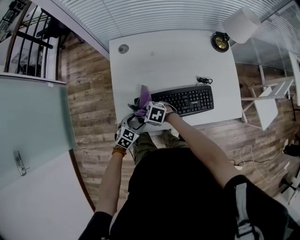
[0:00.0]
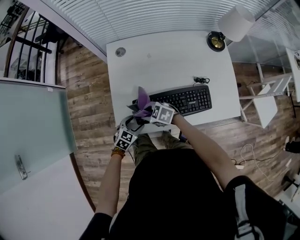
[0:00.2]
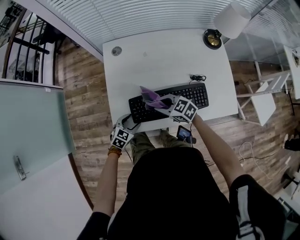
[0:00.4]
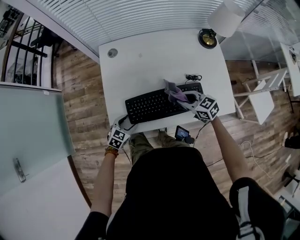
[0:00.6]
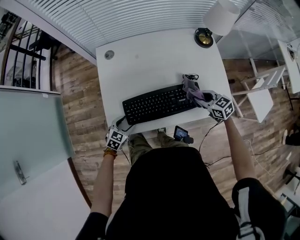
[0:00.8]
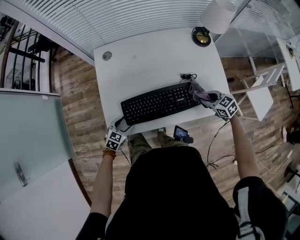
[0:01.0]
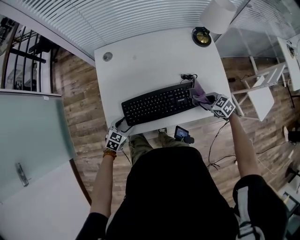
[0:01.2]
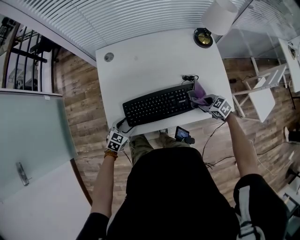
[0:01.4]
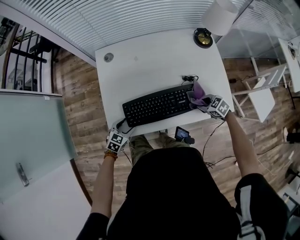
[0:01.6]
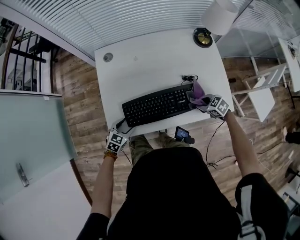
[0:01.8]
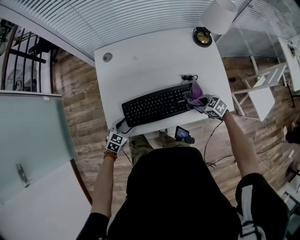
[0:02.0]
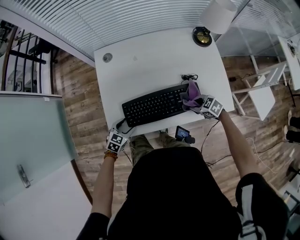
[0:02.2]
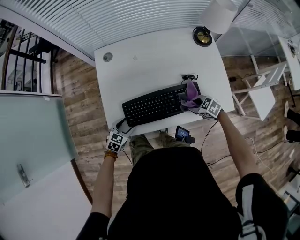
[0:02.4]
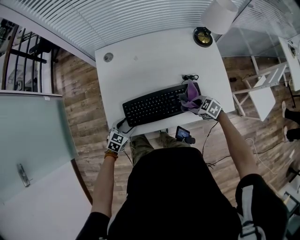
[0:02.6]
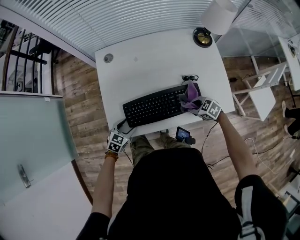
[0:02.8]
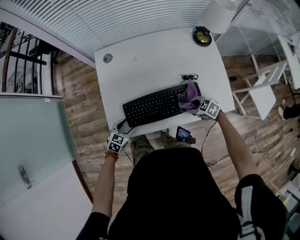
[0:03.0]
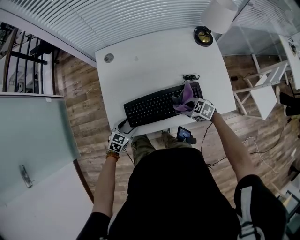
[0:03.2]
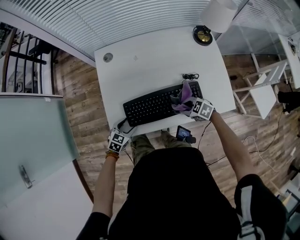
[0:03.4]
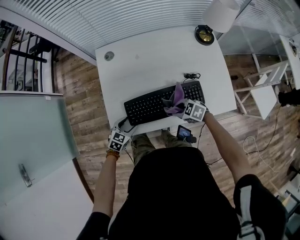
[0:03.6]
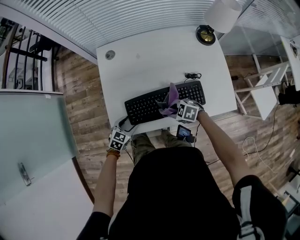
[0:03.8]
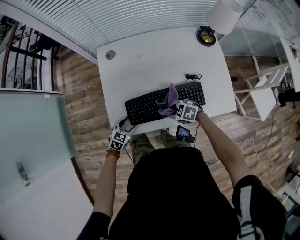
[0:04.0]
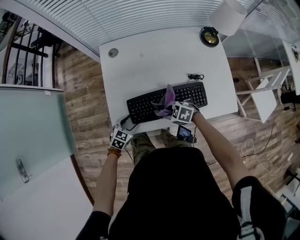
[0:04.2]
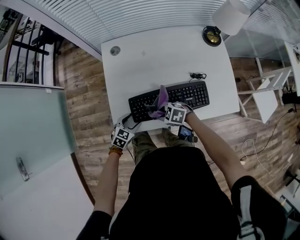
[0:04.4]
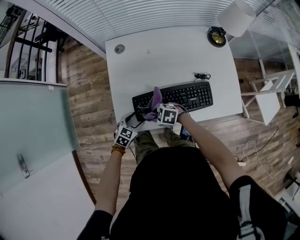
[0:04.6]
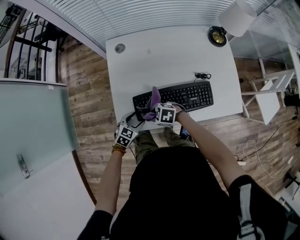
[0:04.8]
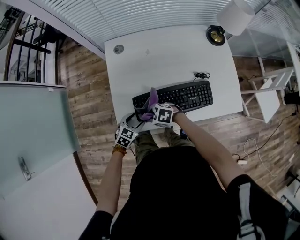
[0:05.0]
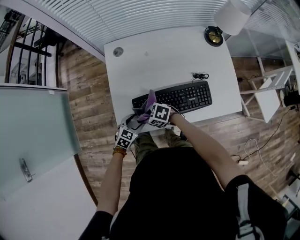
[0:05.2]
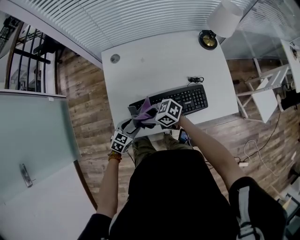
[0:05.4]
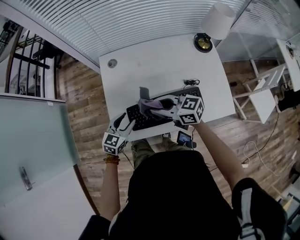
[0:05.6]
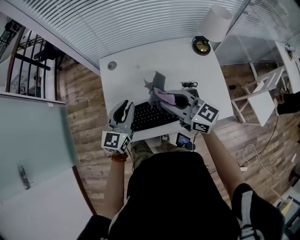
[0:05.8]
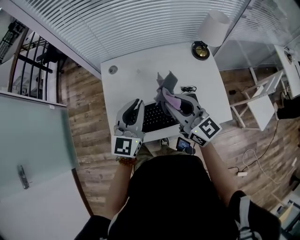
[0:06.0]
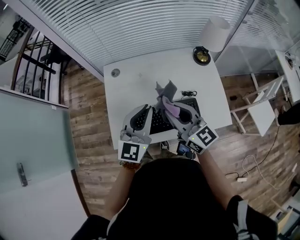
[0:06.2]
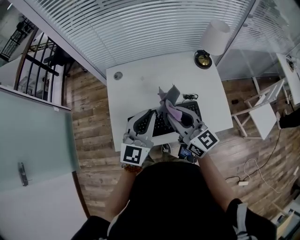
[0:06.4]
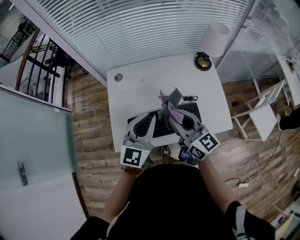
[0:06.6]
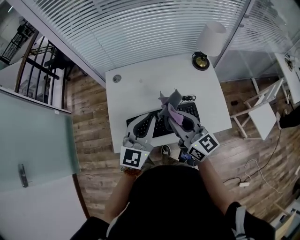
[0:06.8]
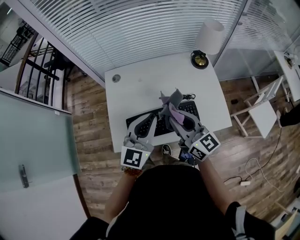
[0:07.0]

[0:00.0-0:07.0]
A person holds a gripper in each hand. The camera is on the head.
0:00.0 to 0:01.4: The right gripper moves some 40 cm, and swivels approximately 30 degrees.
0:01.4 to 0:02.8: The right gripper shifts about 5 cm to the left.
0:02.8 to 0:04.2: The right gripper shifts by approximately 15 cm.
0:04.2 to 0:05.6: The left gripper travels upward by approximately 15 cm; the right gripper shifts roughly 20 cm upward, and tips its fingers upward by roughly 40 degrees.
0:05.6 to 0:07.0: The left gripper goes approximately 25 cm upward and to the right, turns by roughly 30 degrees, and closes its fingers, while the right gripper heads to the right and upward, covering roughly 15 cm, and turns by approximately 40 degrees.

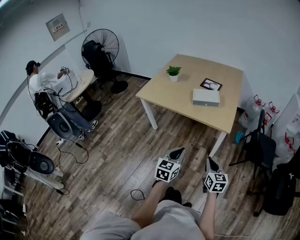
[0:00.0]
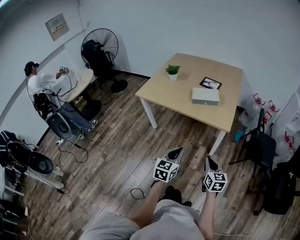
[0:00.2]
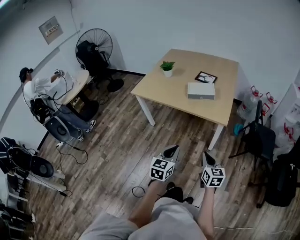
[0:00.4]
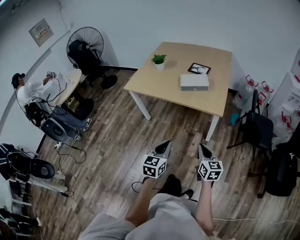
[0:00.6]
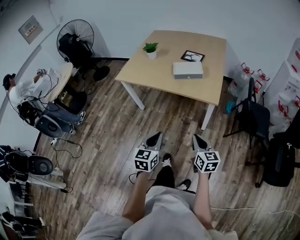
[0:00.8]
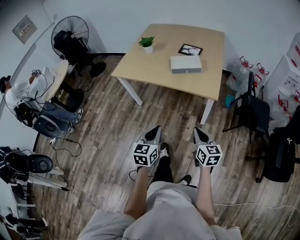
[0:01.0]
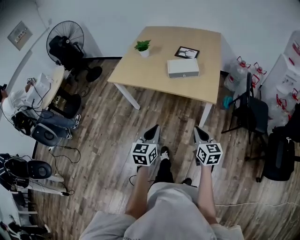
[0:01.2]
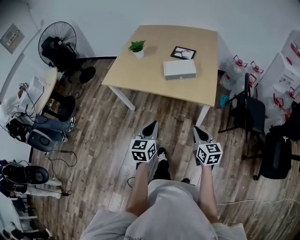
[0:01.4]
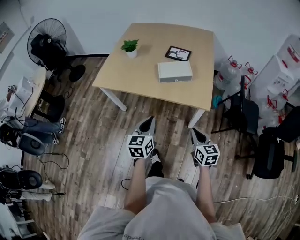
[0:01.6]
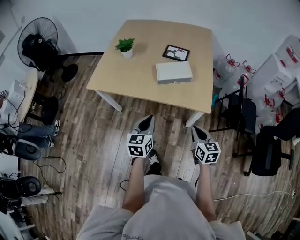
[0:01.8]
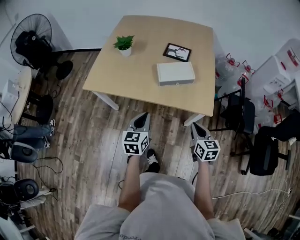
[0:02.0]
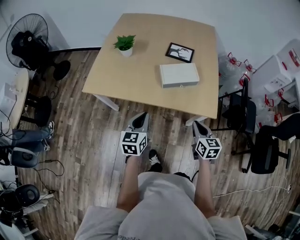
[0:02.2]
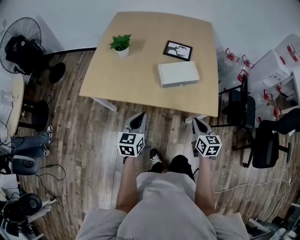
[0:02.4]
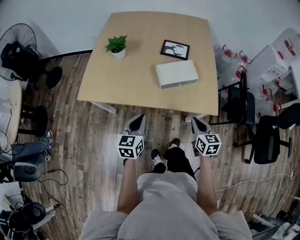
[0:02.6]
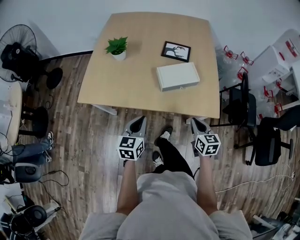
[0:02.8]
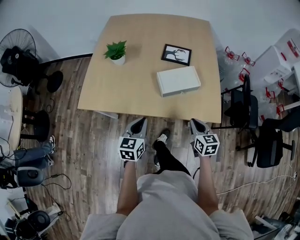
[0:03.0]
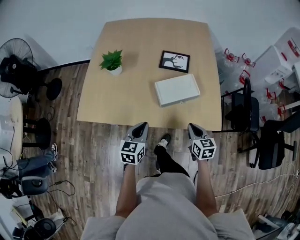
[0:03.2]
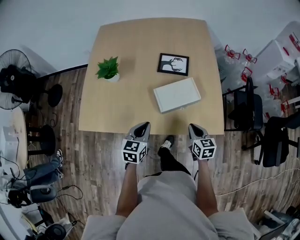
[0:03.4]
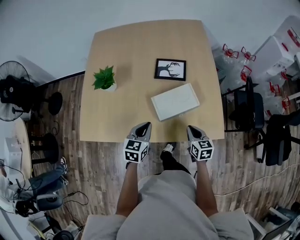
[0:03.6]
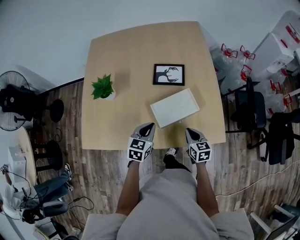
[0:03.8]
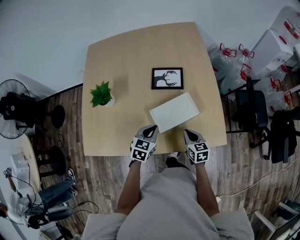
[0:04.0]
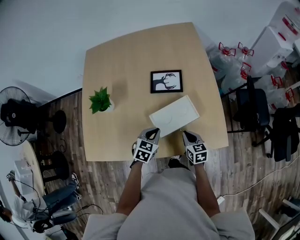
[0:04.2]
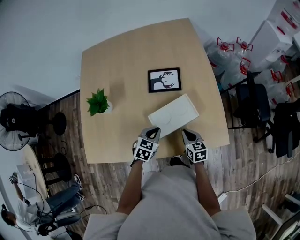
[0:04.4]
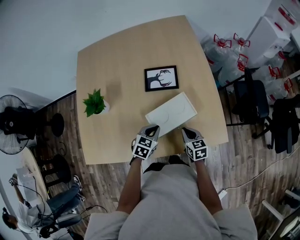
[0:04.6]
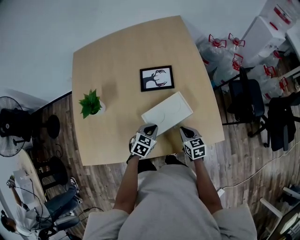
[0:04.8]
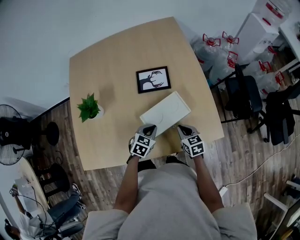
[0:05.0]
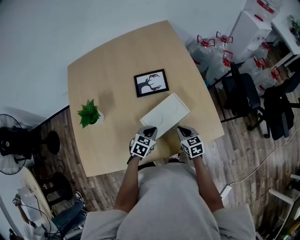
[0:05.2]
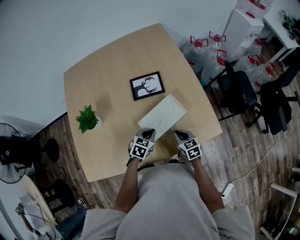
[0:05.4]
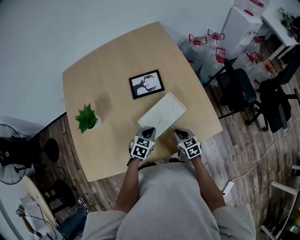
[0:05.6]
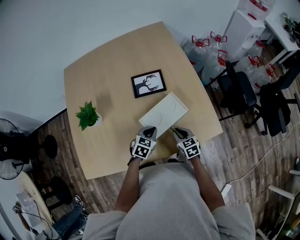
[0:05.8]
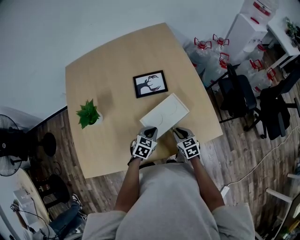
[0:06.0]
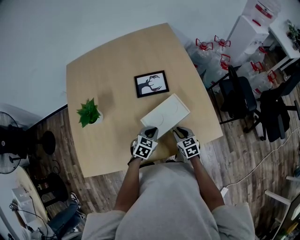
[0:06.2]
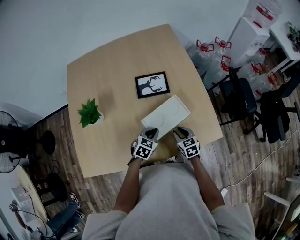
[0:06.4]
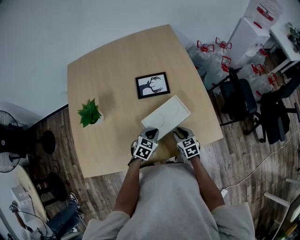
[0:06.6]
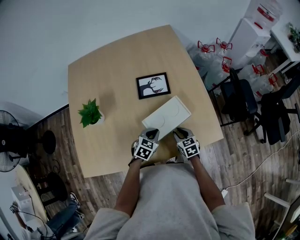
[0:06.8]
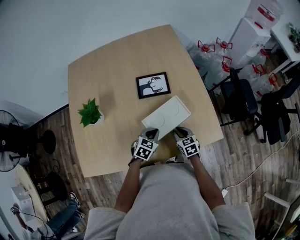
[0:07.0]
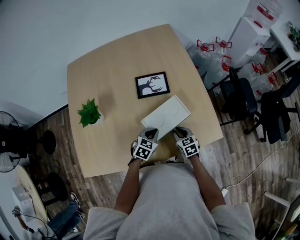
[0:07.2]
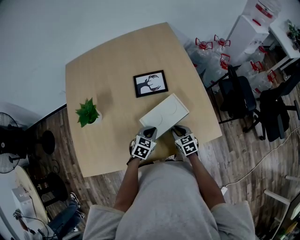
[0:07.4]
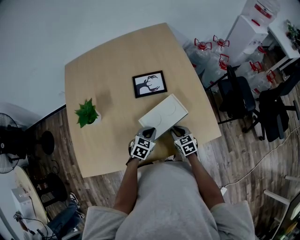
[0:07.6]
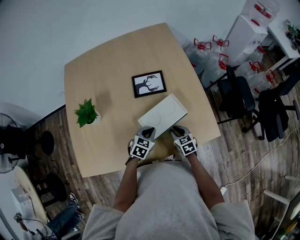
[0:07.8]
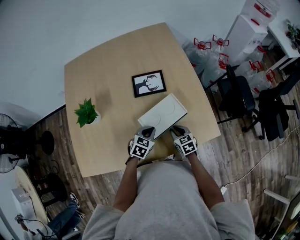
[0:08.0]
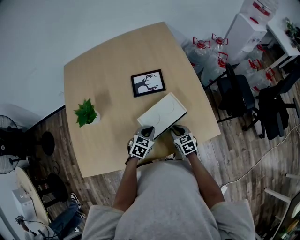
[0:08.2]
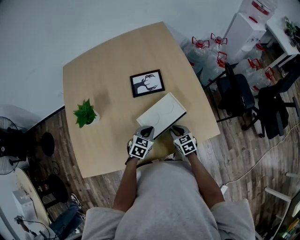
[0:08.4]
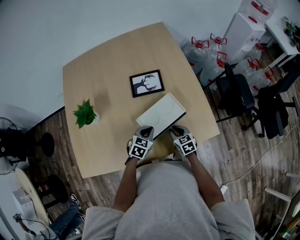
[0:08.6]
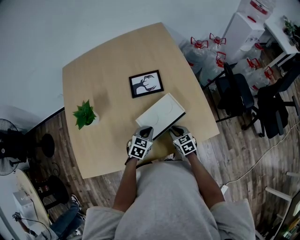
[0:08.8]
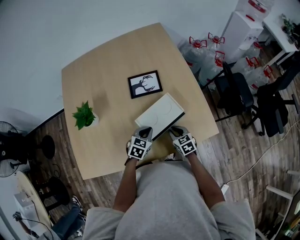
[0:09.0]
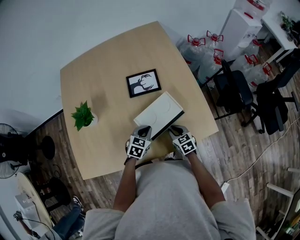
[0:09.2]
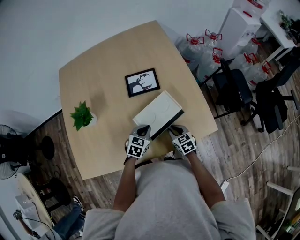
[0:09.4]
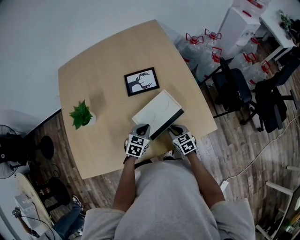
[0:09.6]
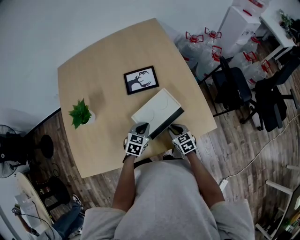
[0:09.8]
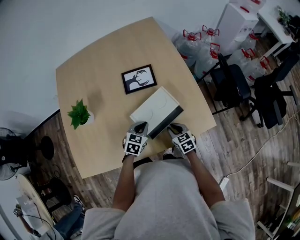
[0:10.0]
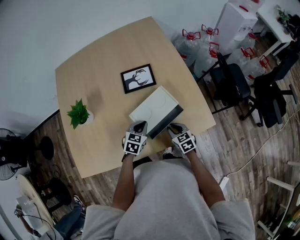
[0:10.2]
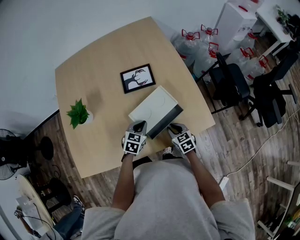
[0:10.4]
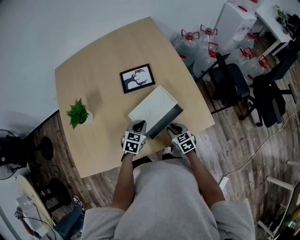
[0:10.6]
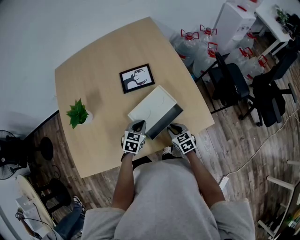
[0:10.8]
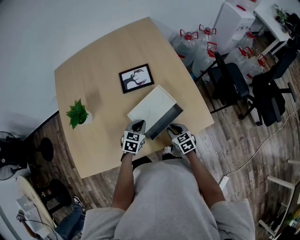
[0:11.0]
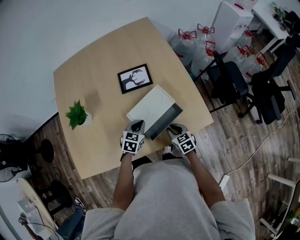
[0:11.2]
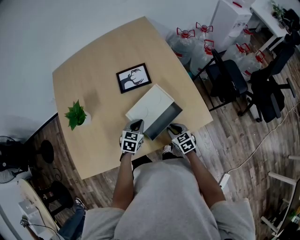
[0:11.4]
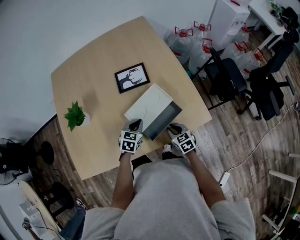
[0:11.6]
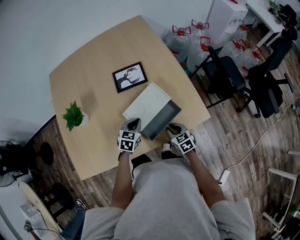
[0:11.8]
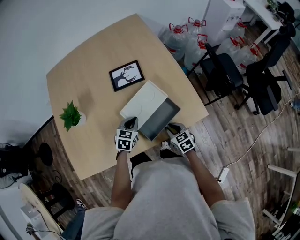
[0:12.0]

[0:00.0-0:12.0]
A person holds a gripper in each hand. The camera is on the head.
0:00.0 to 0:01.6: Both grippers move forward, roughly 15 cm.
0:01.6 to 0:03.0: Both grippers travel together forward and to the left, approximately 25 cm.
0:03.0 to 0:04.4: Both grippers move forward and downward, approximately 20 cm. The left gripper swivels some 40 degrees.
0:04.4 to 0:07.6: There are only small adjustments of the grippers.
0:07.6 to 0:09.0: Both grippers stay put.
0:09.0 to 0:10.4: The grippers stay close to where they were, moving slightly.
0:10.4 to 0:12.0: There are only small adjustments of the grippers.

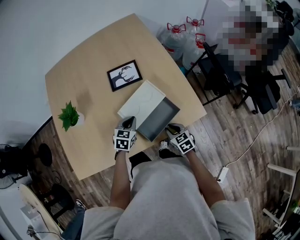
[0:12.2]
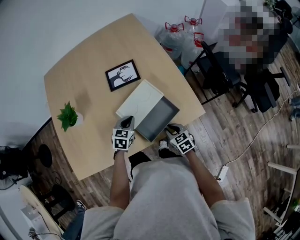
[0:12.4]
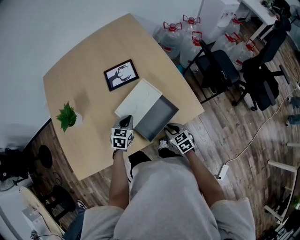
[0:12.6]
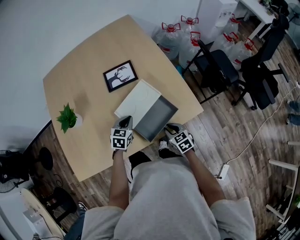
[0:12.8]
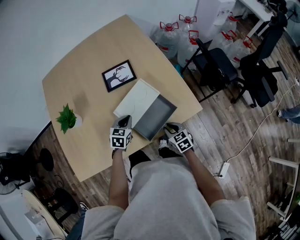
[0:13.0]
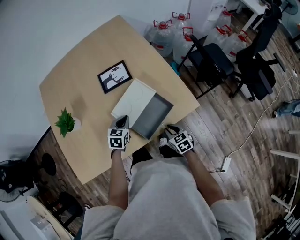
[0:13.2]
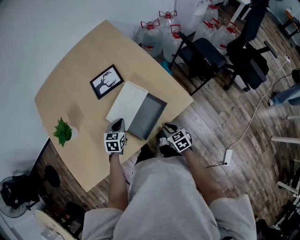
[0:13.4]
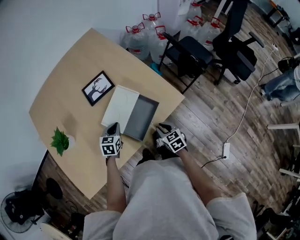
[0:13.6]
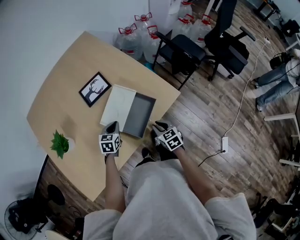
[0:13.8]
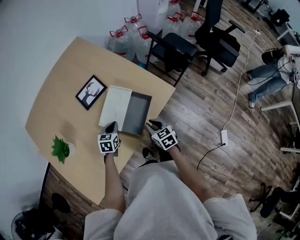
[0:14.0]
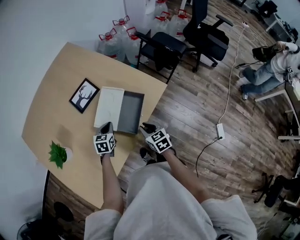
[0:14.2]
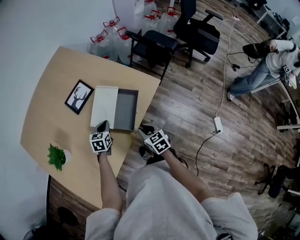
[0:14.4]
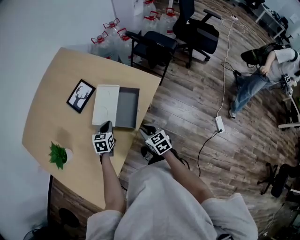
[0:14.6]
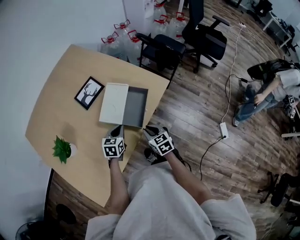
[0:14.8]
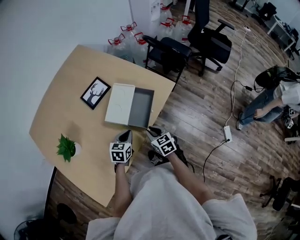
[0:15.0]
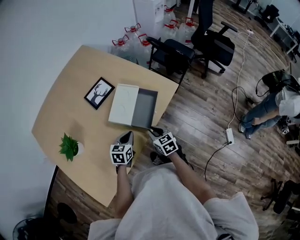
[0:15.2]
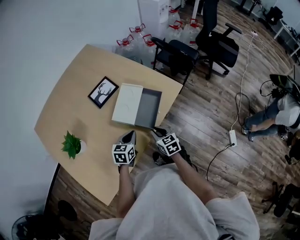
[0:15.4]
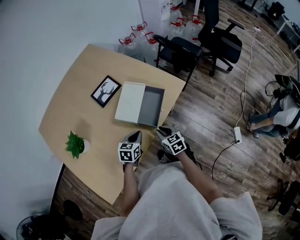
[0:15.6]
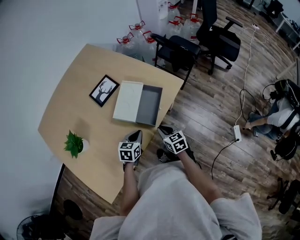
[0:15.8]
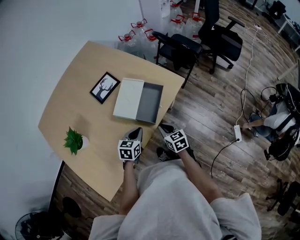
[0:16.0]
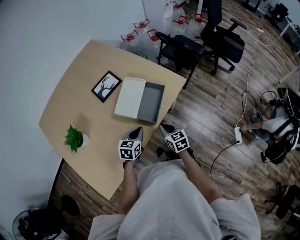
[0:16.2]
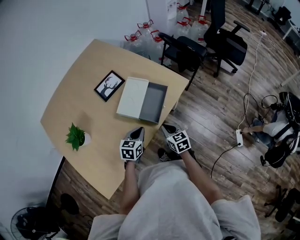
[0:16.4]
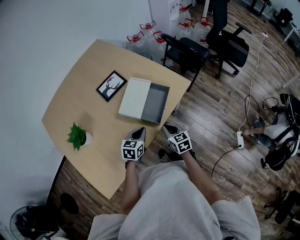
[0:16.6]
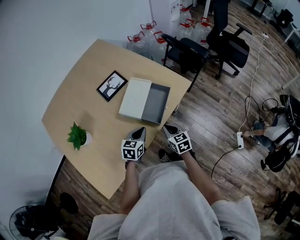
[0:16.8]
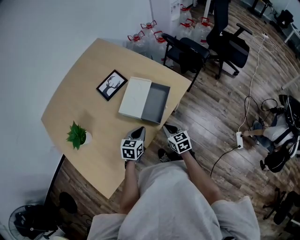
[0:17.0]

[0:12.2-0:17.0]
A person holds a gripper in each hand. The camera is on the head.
0:12.2 to 0:13.8: The right gripper shifts by roughly 5 cm, and swivels approximately 20 degrees.
0:13.8 to 0:15.4: The left gripper heads backward, covering some 10 cm. Meanwhile the right gripper is displaced to the left and backward by roughly 10 cm.
0:15.4 to 0:17.0: The grippers stay close to where they were, moving slightly.
